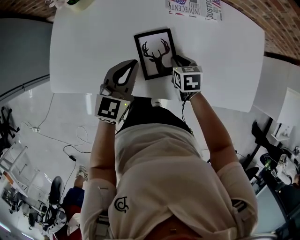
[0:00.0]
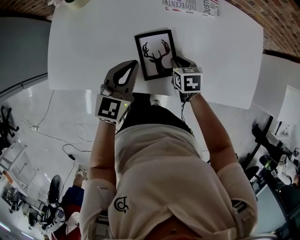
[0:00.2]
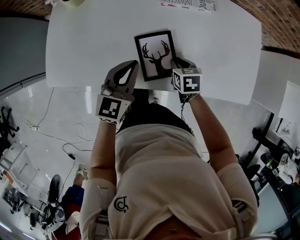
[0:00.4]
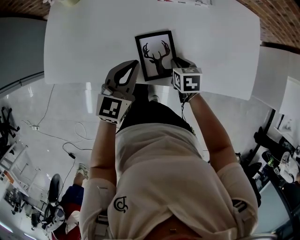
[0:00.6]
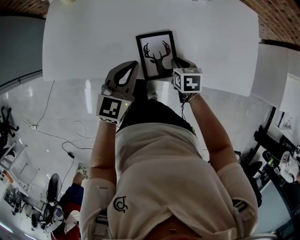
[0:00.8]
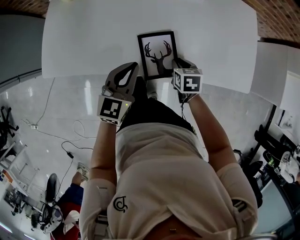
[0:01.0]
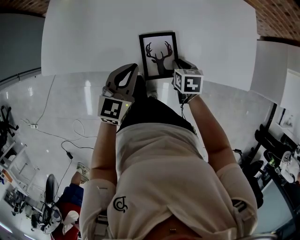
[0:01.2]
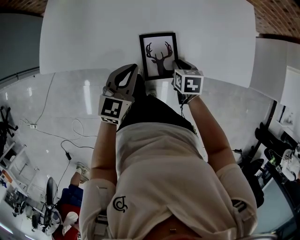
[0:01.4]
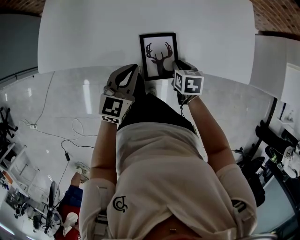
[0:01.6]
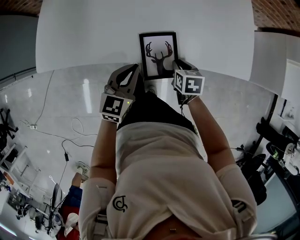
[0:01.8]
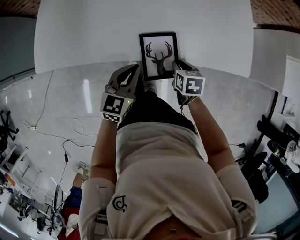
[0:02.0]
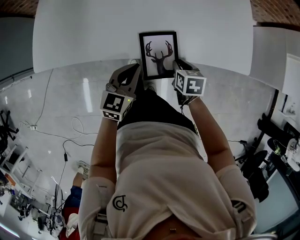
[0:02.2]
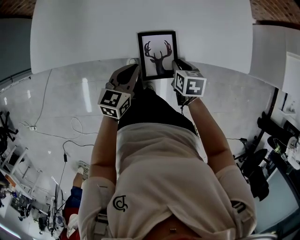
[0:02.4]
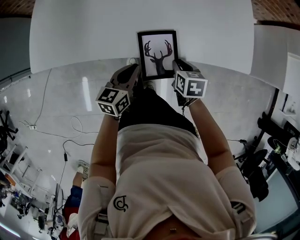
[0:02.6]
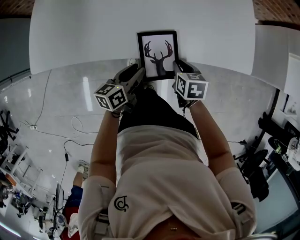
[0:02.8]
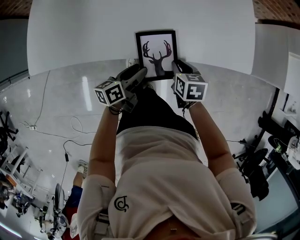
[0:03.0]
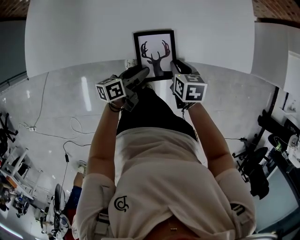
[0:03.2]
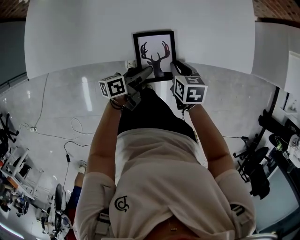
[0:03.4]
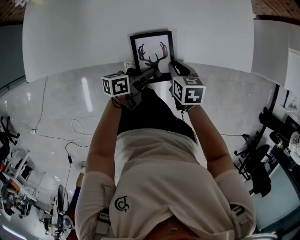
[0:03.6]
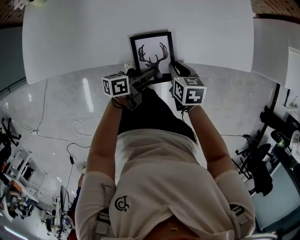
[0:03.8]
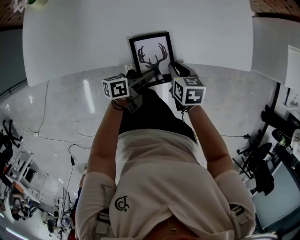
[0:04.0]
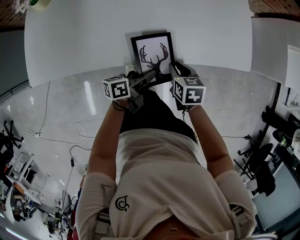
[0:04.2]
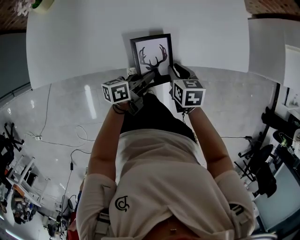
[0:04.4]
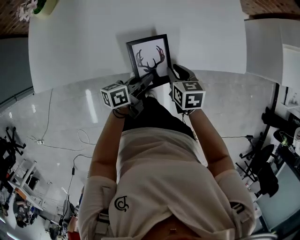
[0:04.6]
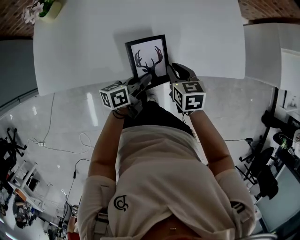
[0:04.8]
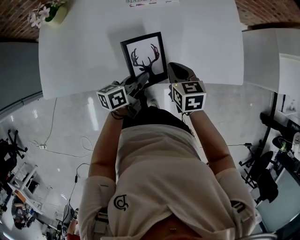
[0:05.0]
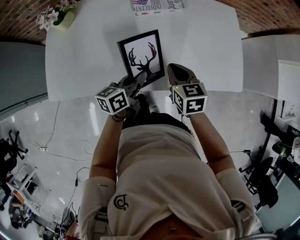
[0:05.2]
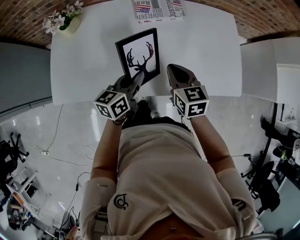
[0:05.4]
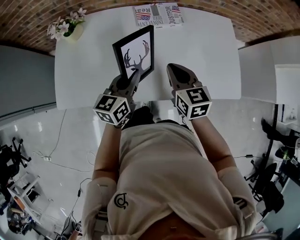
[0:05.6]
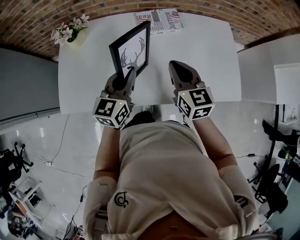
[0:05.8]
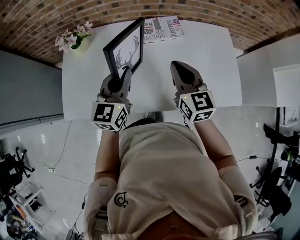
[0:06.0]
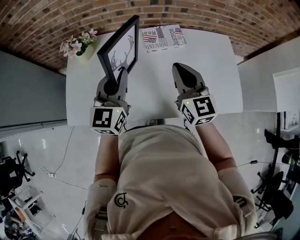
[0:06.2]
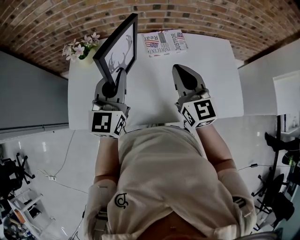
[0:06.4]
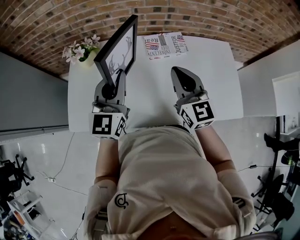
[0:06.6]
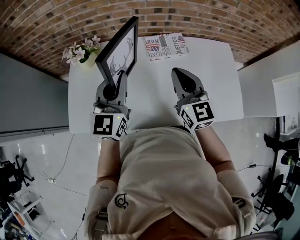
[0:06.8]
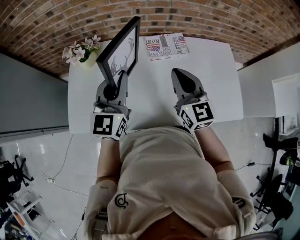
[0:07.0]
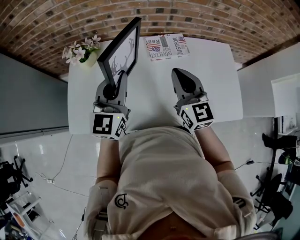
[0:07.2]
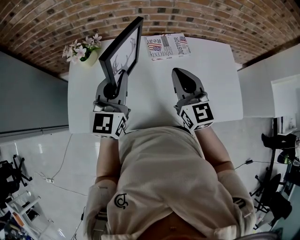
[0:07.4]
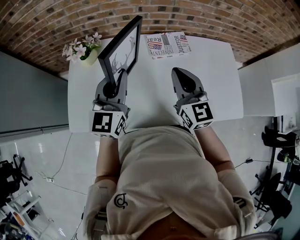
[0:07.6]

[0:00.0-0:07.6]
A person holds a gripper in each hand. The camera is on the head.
0.0 to 1.6 s: Both grippers move backward and to the right, some 20 cm.
1.6 to 3.0 s: The left gripper shifts some 10 cm downward, twists some 50 degrees counterclockwise, seen from behind, and opens up.
3.0 to 4.6 s: The left gripper travels to the right by roughly 5 cm, and closes up.
4.6 to 6.0 s: The right gripper goes about 30 cm upward, forward and to the left, points its fingers roughly 40 degrees further upward, and closes; the left gripper travels upward, to the left and forward by approximately 35 cm, and rolls clockwise, seen from behind, by roughly 60 degrees.
6.0 to 7.6 s: The right gripper moves to the left, some 5 cm, while the left gripper heads to the left and upward, covering approximately 10 cm.

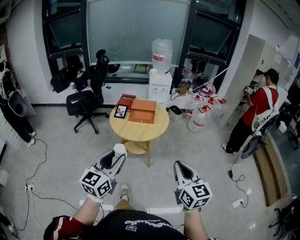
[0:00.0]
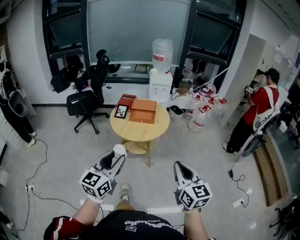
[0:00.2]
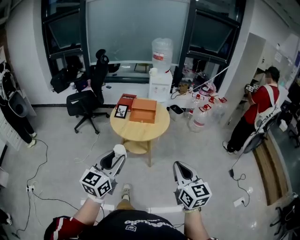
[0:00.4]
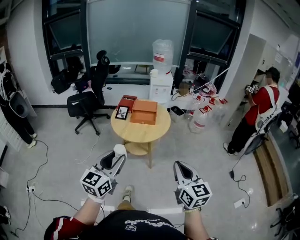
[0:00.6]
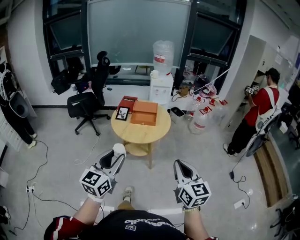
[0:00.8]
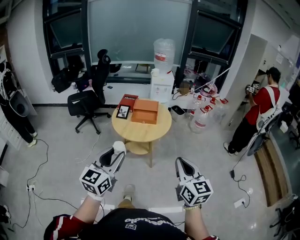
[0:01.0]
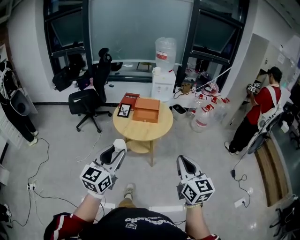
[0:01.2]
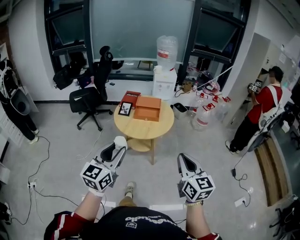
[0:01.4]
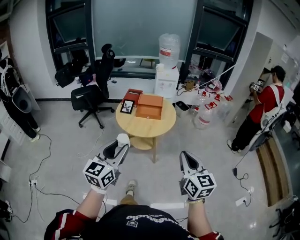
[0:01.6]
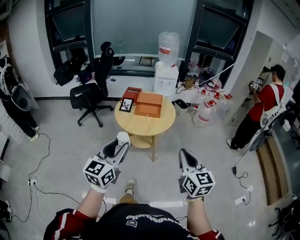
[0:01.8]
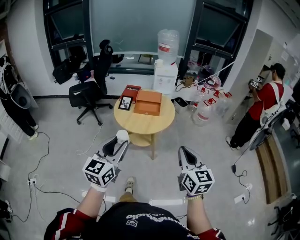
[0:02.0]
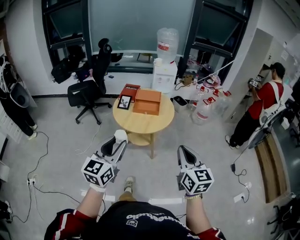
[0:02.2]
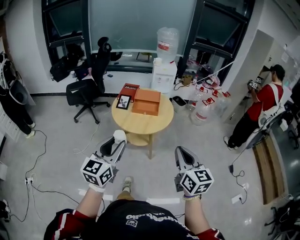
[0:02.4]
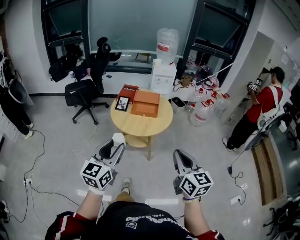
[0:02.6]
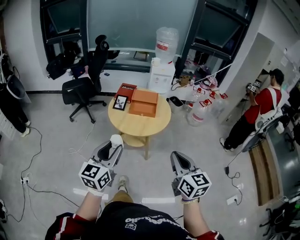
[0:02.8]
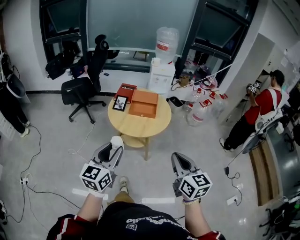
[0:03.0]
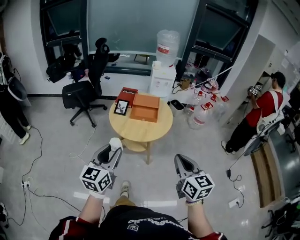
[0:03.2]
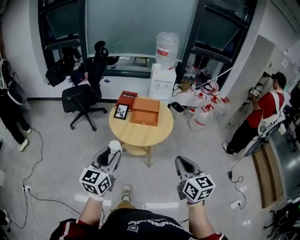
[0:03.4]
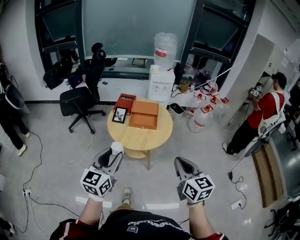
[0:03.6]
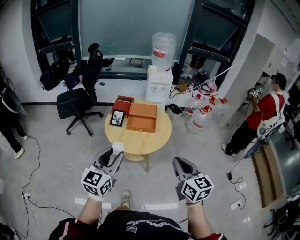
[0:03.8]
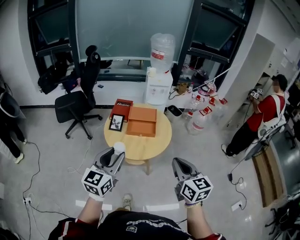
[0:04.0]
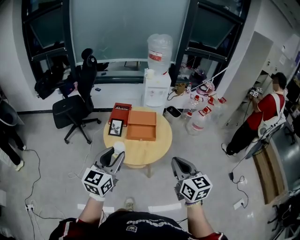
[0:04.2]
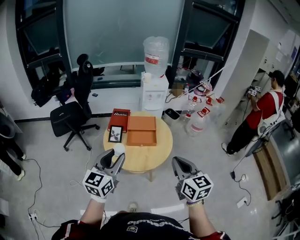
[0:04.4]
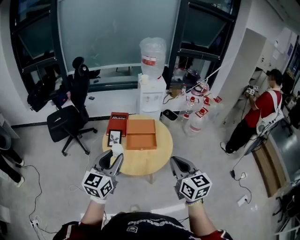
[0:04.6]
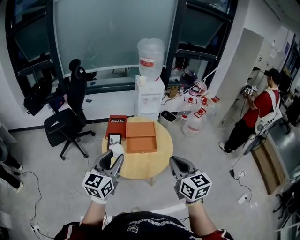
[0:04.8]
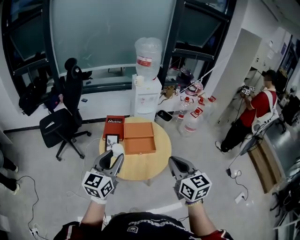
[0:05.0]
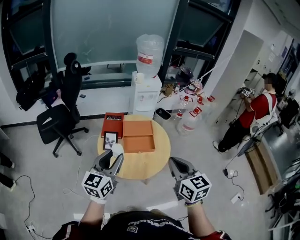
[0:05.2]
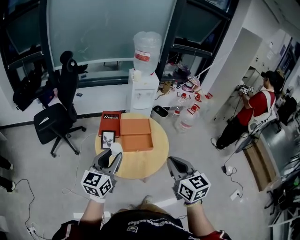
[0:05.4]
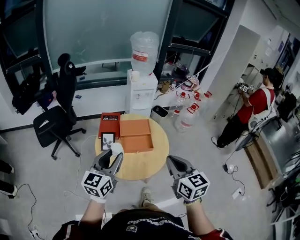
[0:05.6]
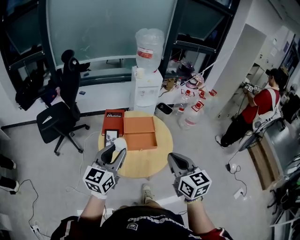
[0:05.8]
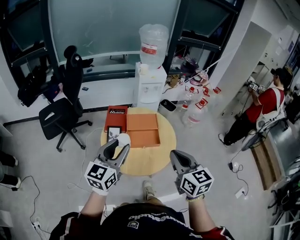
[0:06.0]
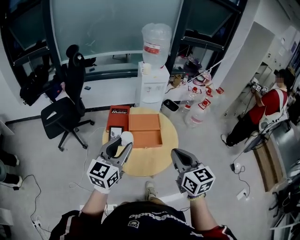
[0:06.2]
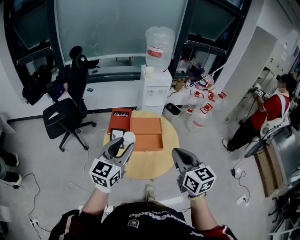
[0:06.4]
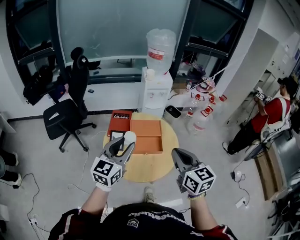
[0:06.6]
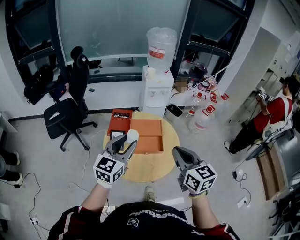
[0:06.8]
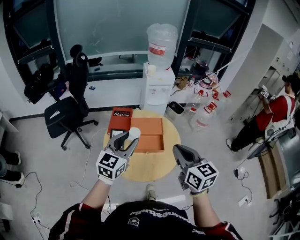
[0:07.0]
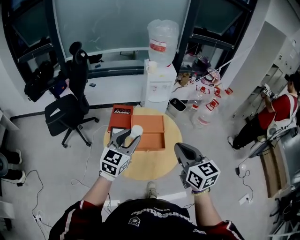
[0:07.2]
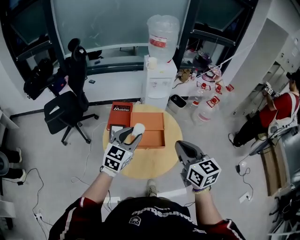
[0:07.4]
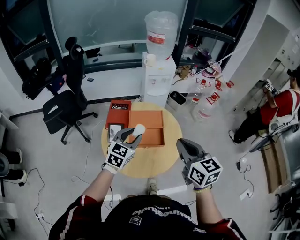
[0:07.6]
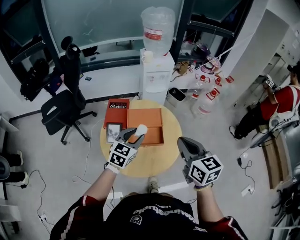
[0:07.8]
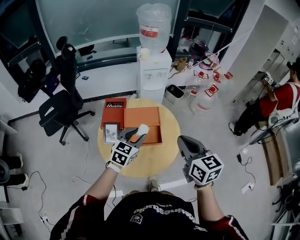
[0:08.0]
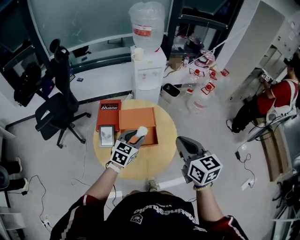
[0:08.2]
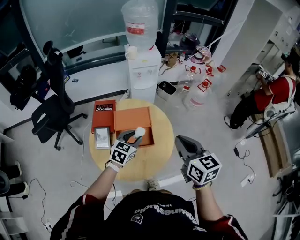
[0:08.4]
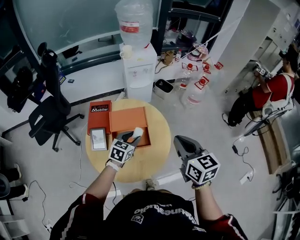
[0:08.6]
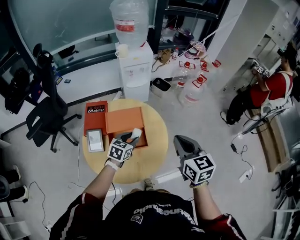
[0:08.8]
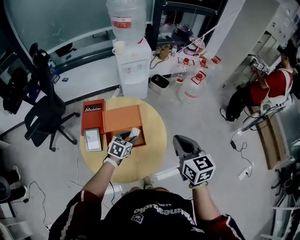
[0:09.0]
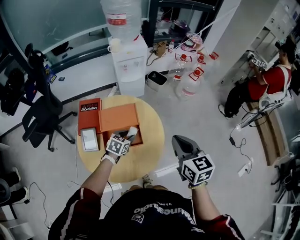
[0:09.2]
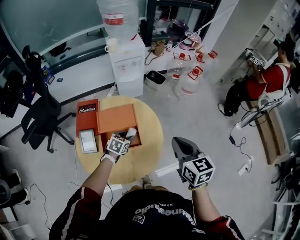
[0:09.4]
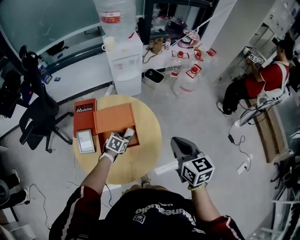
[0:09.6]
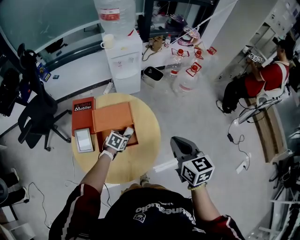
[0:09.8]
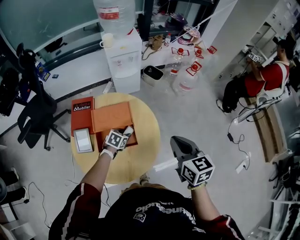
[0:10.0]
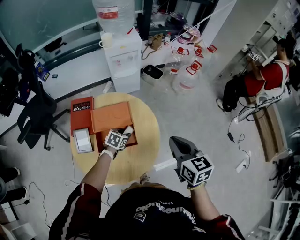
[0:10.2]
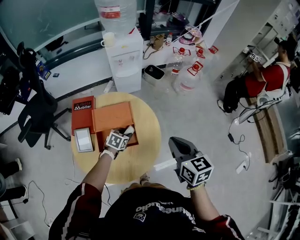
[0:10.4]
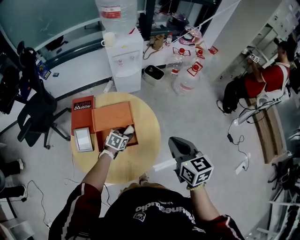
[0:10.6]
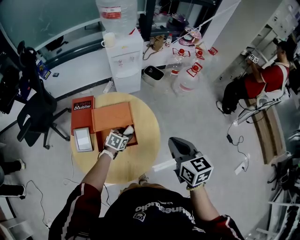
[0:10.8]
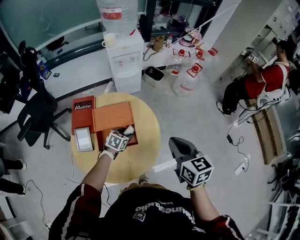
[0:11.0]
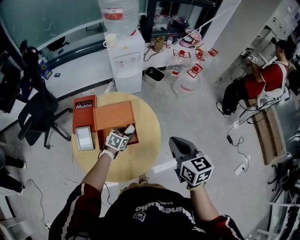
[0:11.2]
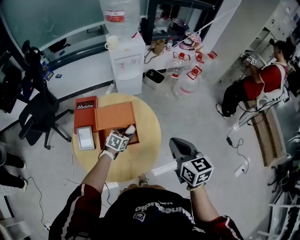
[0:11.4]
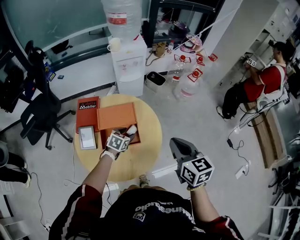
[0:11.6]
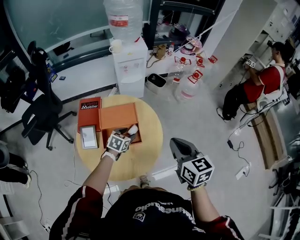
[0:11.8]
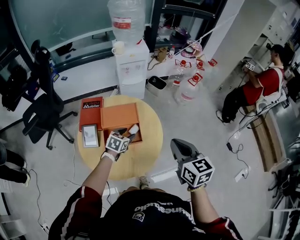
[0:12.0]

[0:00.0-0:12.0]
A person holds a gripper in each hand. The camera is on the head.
0.0 to 1.6 s: The grippers stay close to where they were, moving slightly.
1.6 to 3.0 s: The left gripper ends up approximately 5 cm from where it was. The right gripper ends up approximately 5 cm from where it was.
3.0 to 4.4 s: Both grippers move forward, some 25 cm.
4.4 to 6.0 s: The left gripper shifts about 15 cm forward. The right gripper goes approximately 15 cm forward and to the left.
6.0 to 7.6 s: The right gripper heads forward, covering roughly 10 cm. The left gripper is displaced forward, downward and to the right by roughly 20 cm, and turns by roughly 20 degrees.
7.6 to 9.0 s: The left gripper heads downward, to the right and forward, covering roughly 25 cm, and changes its angle by approximately 30 degrees. The right gripper travels to the right, forward and downward by approximately 15 cm.
9.0 to 10.4 s: The right gripper ends up roughly 5 cm from where it was. Meanwhile the left gripper is displaced downward by about 10 cm.
10.4 to 12.0 s: The right gripper travels backward by approximately 5 cm. The left gripper travels upward by about 10 cm.

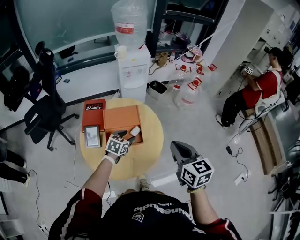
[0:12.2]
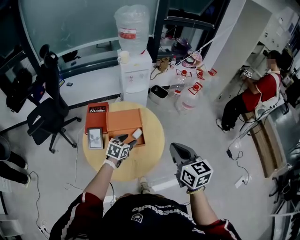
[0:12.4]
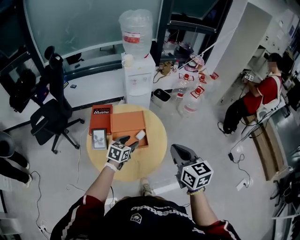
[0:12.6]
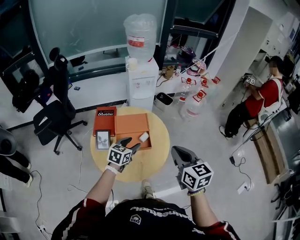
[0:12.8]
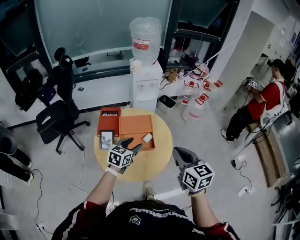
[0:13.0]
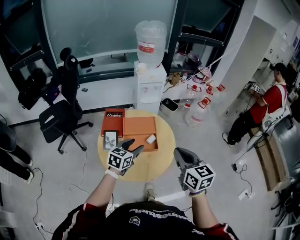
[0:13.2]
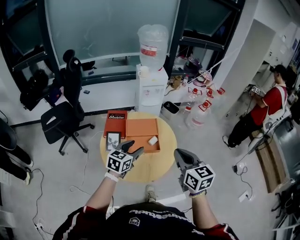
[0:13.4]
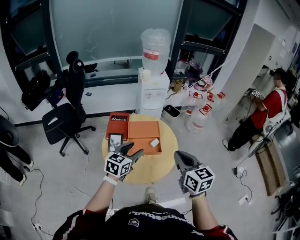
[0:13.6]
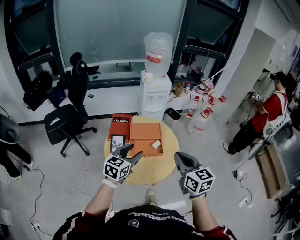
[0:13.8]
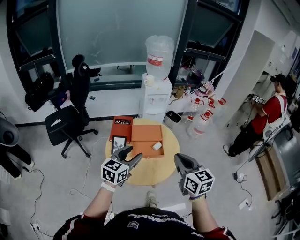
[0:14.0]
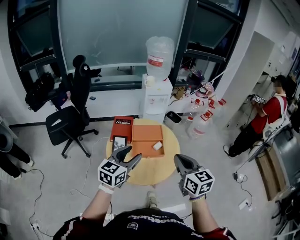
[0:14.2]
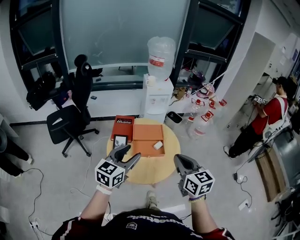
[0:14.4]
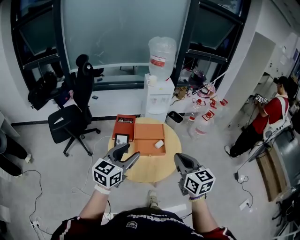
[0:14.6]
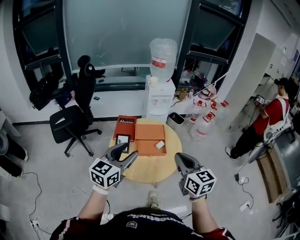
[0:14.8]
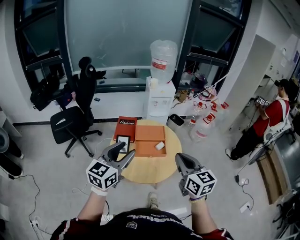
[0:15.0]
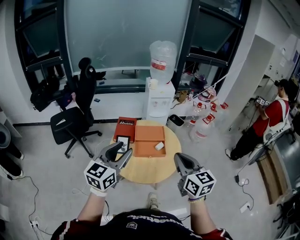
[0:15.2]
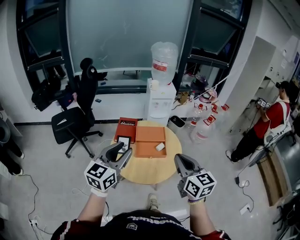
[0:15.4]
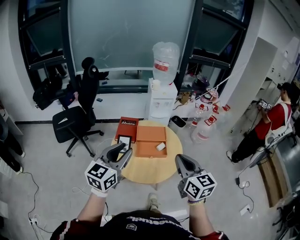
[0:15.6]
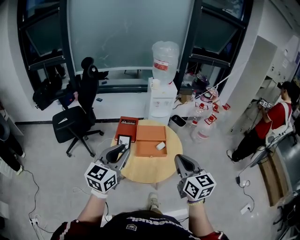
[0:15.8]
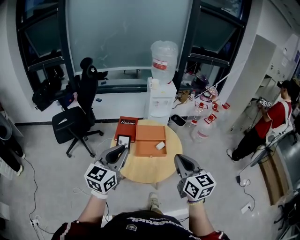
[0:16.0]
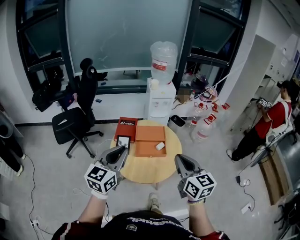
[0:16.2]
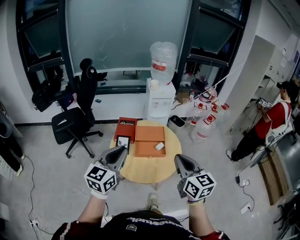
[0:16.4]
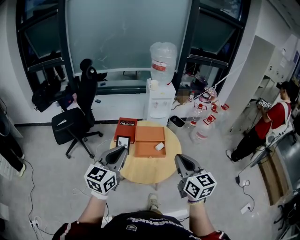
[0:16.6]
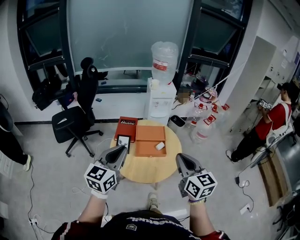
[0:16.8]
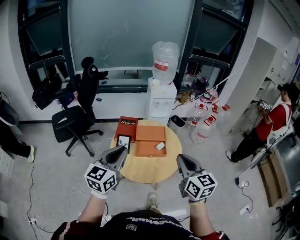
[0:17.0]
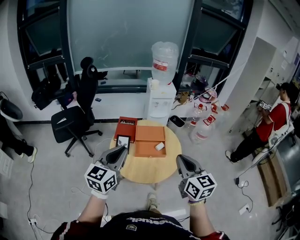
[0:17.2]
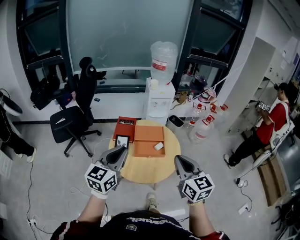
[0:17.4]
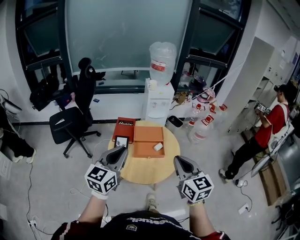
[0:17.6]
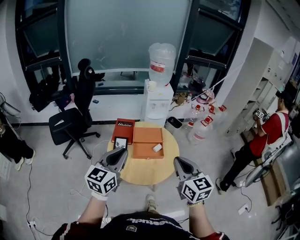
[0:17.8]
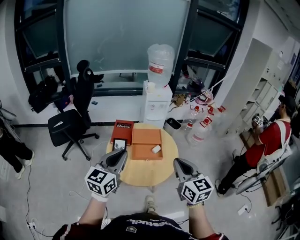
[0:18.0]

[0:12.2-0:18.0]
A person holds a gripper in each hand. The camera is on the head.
12.2 to 13.6 s: The left gripper travels upward, backward and to the left by approximately 25 cm, and changes its angle by approximately 20 degrees. Meanwhile the right gripper heads to the left, backward and upward, covering some 15 cm.
13.6 to 15.0 s: The left gripper travels upward, backward and to the left by roughly 20 cm; the right gripper moves backward, roughly 5 cm.
15.0 to 16.6 s: The left gripper closes up.
16.6 to 18.0 s: The grippers move only a little.
